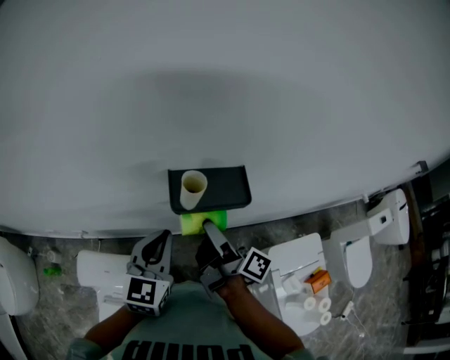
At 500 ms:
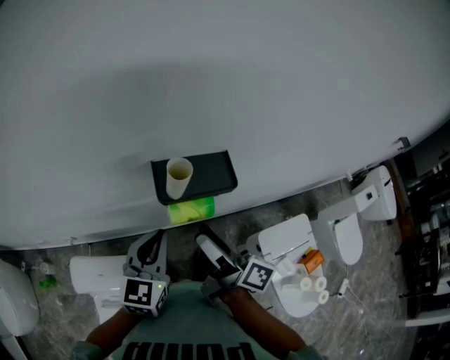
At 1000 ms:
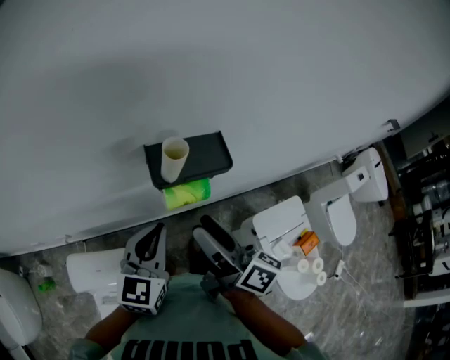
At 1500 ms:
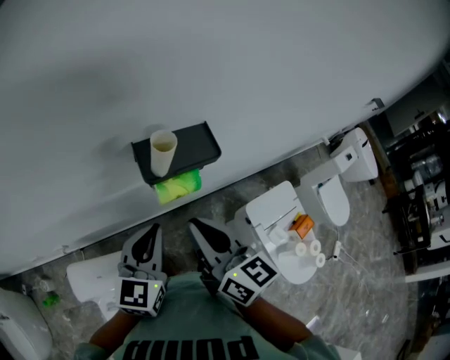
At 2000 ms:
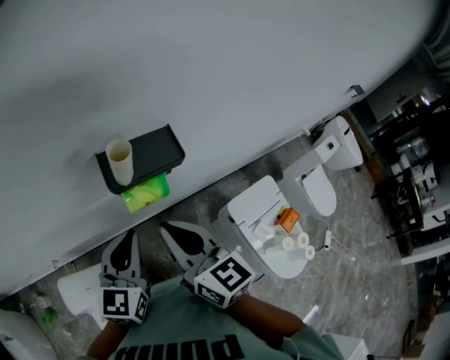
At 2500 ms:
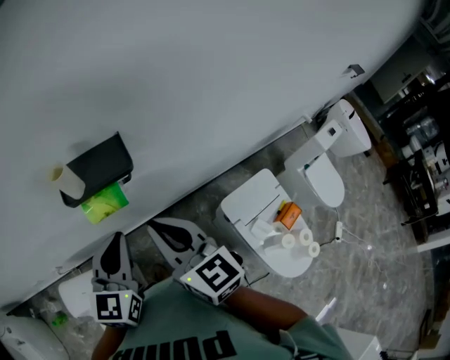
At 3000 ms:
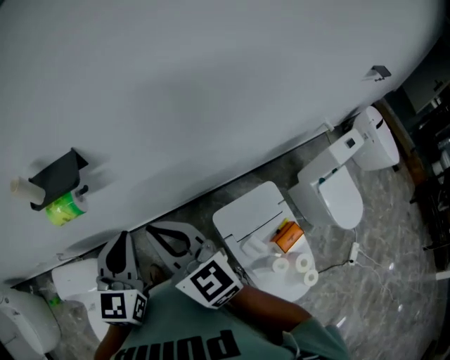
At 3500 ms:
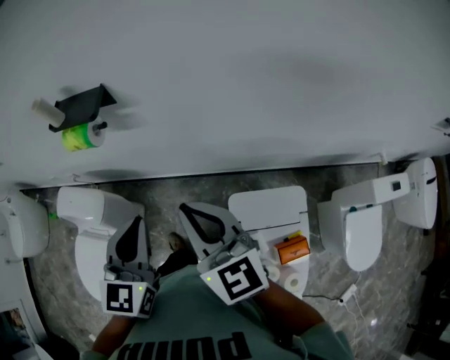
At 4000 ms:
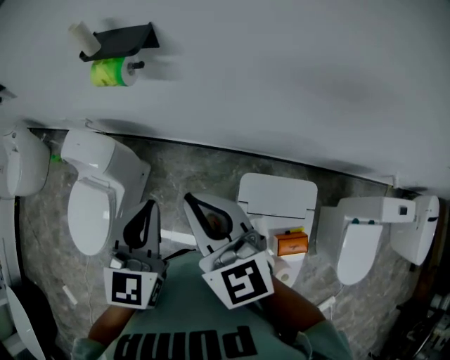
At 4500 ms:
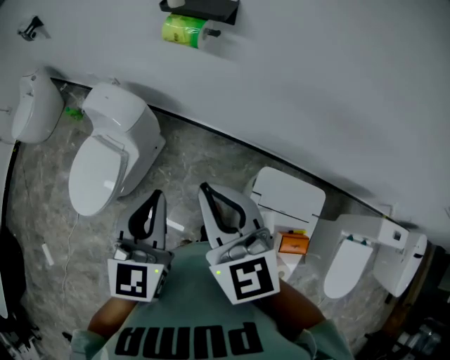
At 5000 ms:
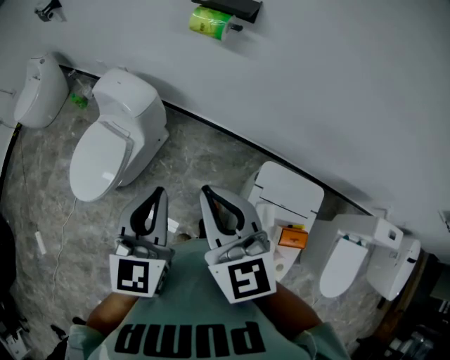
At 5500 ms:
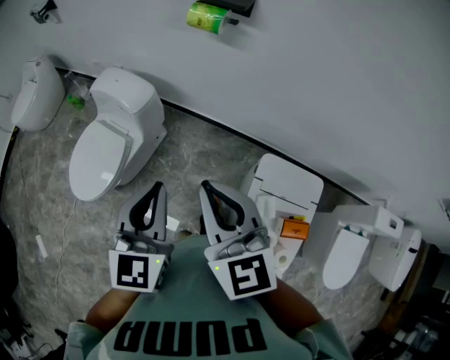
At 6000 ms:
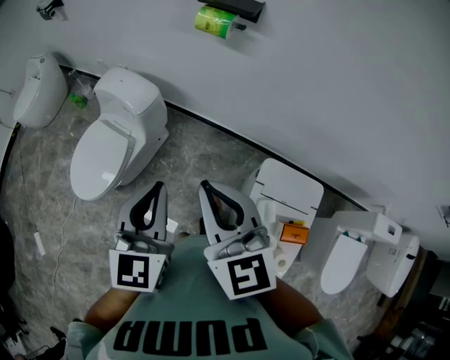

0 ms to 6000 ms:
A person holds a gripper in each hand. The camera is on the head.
0 ms to 2000 ms: The right gripper moves backward, some 10 cm, rotates around the line of its fingers by some 70 degrees, counterclockwise from behind, and closes up.
2000 ms to 4000 ms: The right gripper moves some 35 cm, and changes its angle by roughly 40 degrees. The left gripper changes place by some 35 cm, and turns by roughly 40 degrees.
4000 ms to 6000 ms: The grippers both shift to the left and backward by about 20 cm.

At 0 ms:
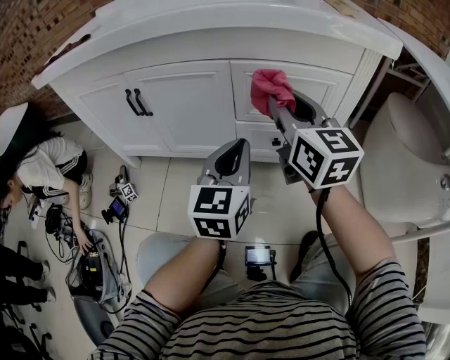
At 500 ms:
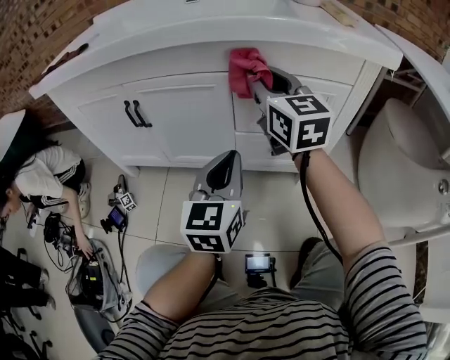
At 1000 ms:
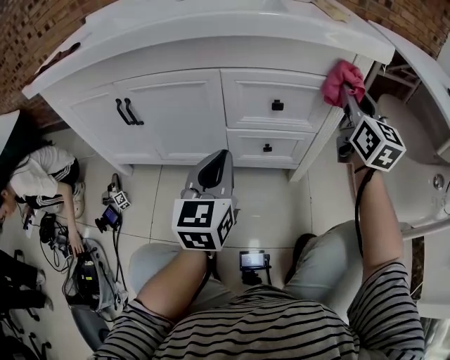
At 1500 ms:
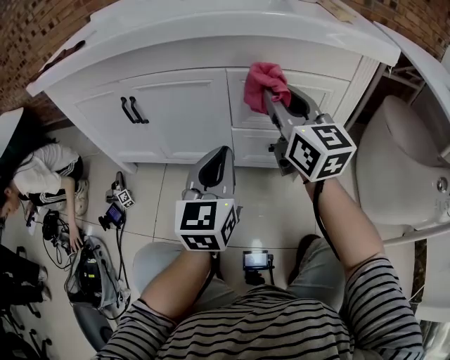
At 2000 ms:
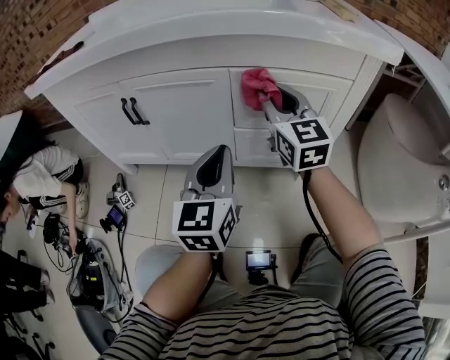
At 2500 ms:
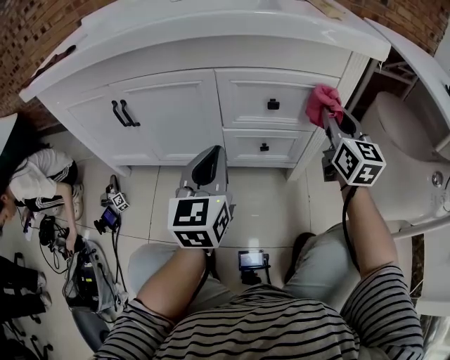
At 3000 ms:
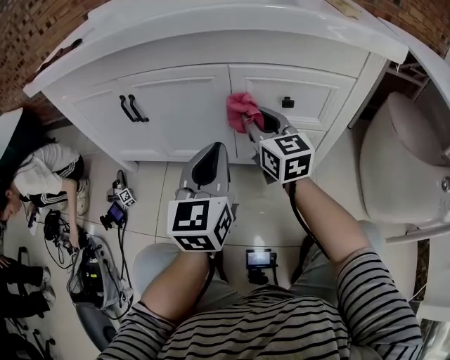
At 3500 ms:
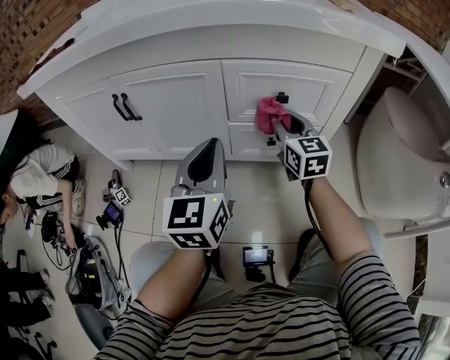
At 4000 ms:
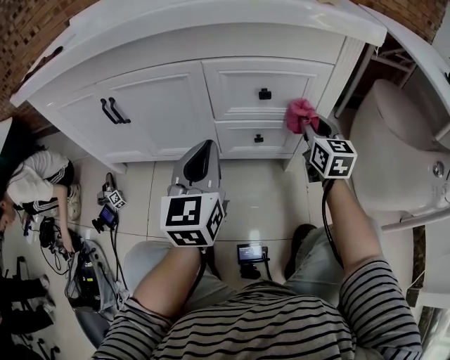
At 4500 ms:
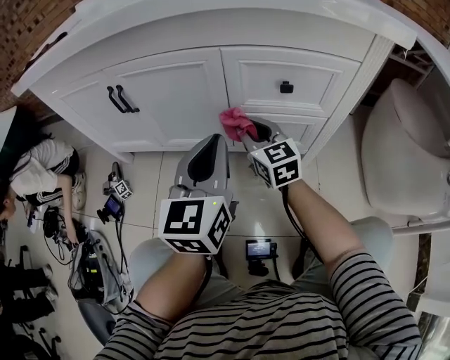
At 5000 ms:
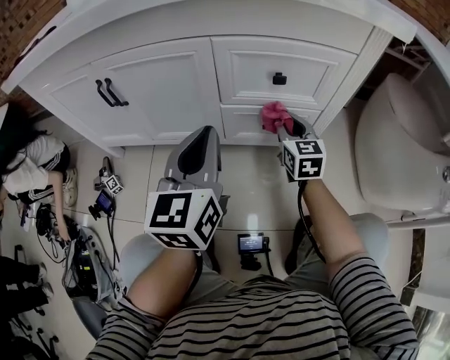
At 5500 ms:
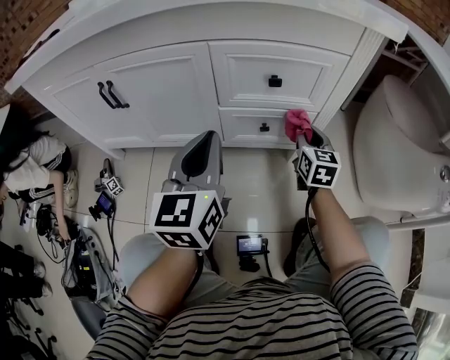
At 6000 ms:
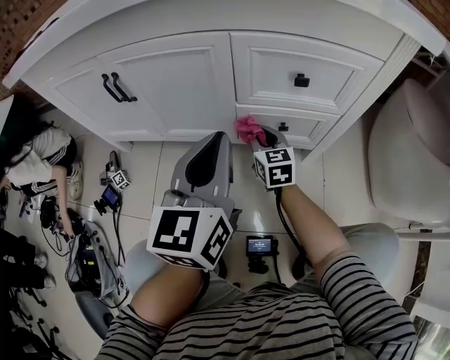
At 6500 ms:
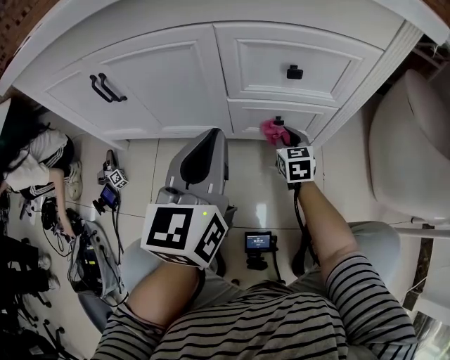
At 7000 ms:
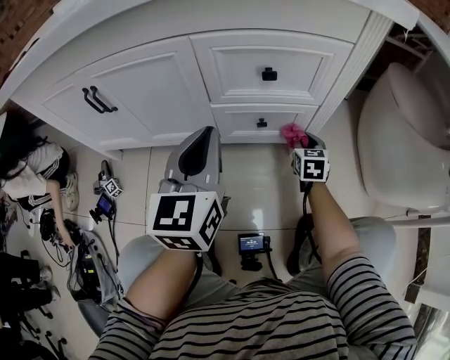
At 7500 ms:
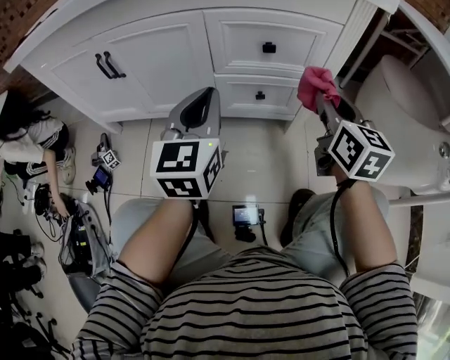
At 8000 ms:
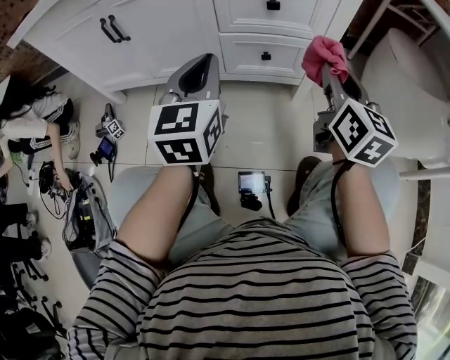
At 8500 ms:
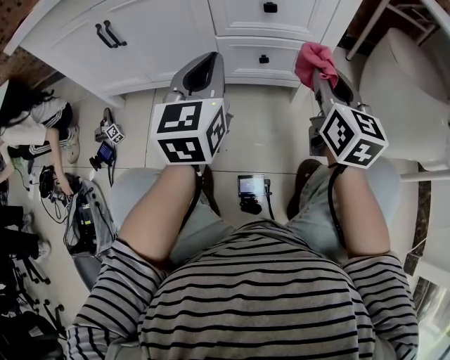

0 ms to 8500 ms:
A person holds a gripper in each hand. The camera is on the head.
0 ms to 2000 ms: The right gripper swings left and right, about 25 cm each way, with 2 reversals.
2000 ms to 4000 ms: The right gripper moves left and right over about 20 cm, changing direction 2 times, and rotates about 20 degrees.
4000 ms to 6500 ms: The right gripper swings left and right, about 25 cm each way, with 3 reversals, and changes its angle by some 20 degrees.
6500 ms to 8500 ms: The right gripper goes roughly 30 cm upward and backward, and rotates roughly 30 degrees.

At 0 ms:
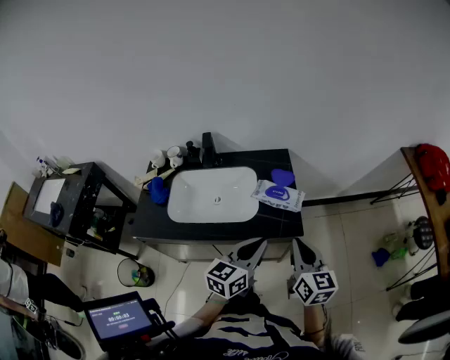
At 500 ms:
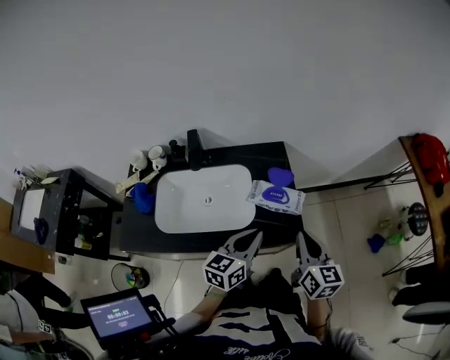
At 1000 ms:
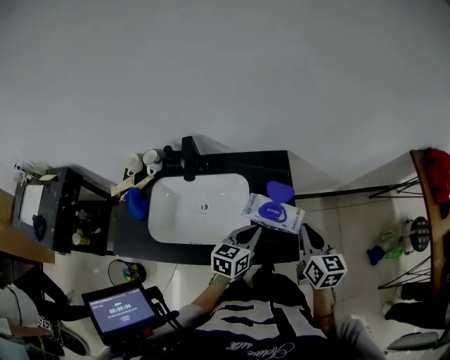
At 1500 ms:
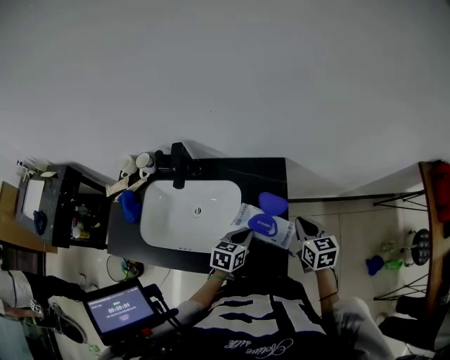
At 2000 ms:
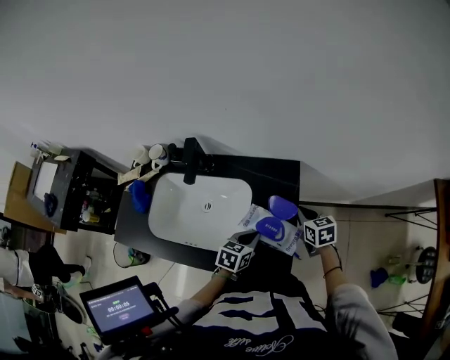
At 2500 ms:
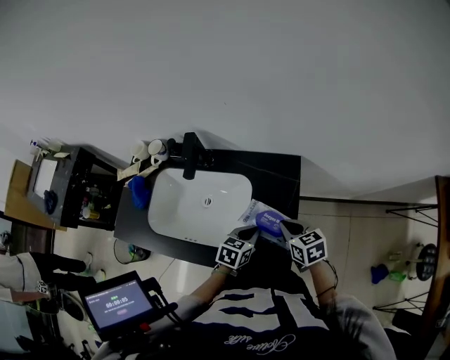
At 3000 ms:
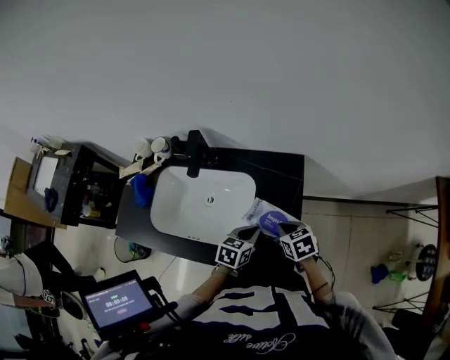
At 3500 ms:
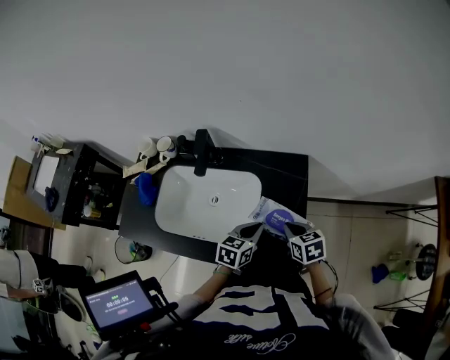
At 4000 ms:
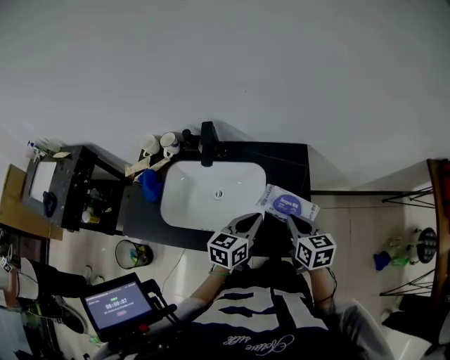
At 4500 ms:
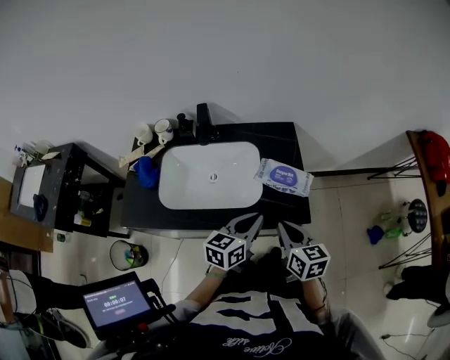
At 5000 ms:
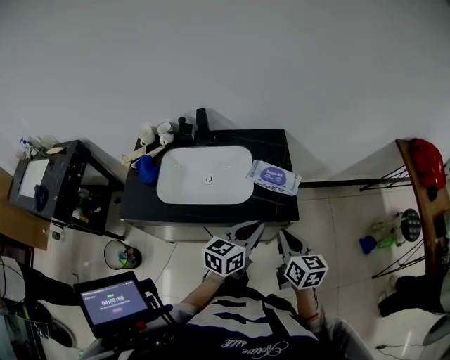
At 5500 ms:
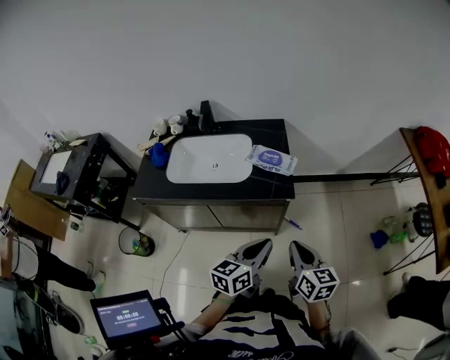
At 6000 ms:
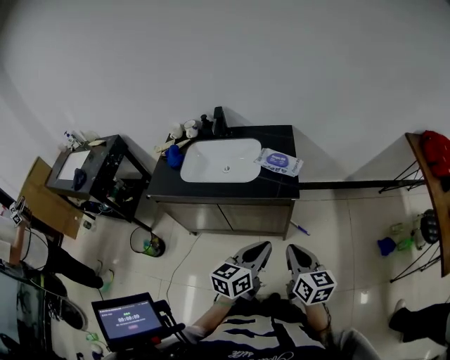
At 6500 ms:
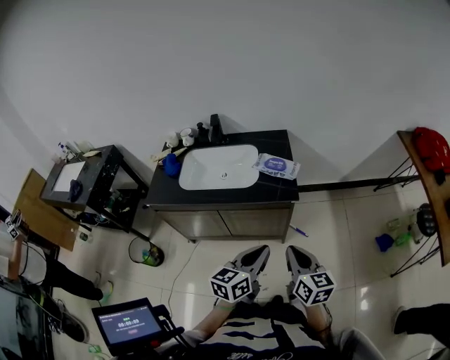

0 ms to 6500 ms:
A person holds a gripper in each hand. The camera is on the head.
0 ms to 2000 ms: Both grippers travel together forward and downward, approximately 35 cm. The left gripper tilts its fingers some 30 degrees downward; the right gripper angles its fingers downward, by approximately 30 degrees.
2000 ms to 4500 ms: The right gripper is displaced backward, to the left and upward by some 35 cm, and changes its angle by about 20 degrees, while the left gripper heads upward, backward and to the left, covering about 20 cm, and changes its angle by about 30 degrees.
4500 ms to 6500 ms: Both grippers move backward and to the right, roughly 25 cm.

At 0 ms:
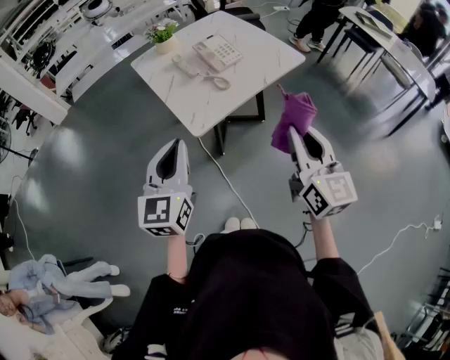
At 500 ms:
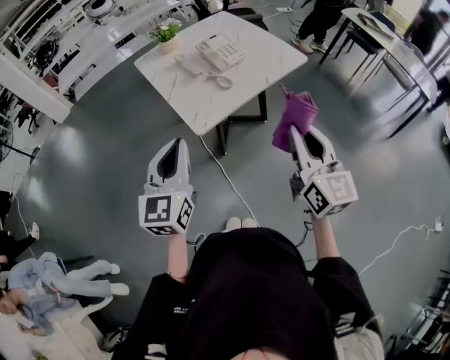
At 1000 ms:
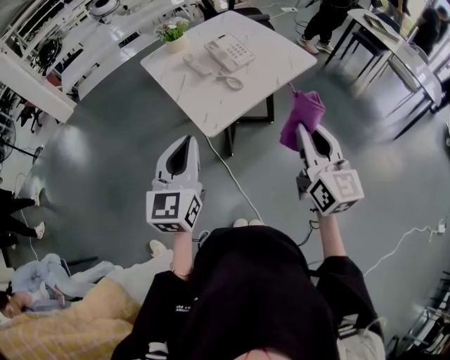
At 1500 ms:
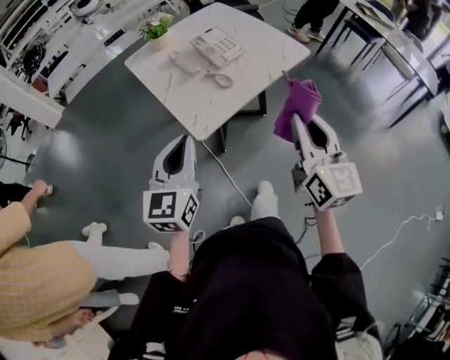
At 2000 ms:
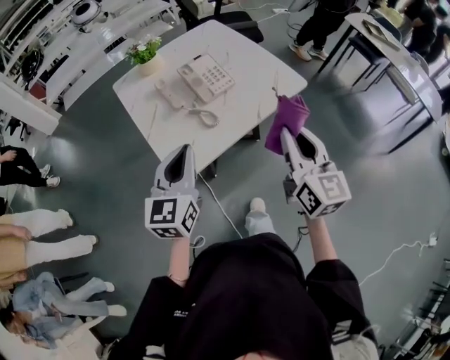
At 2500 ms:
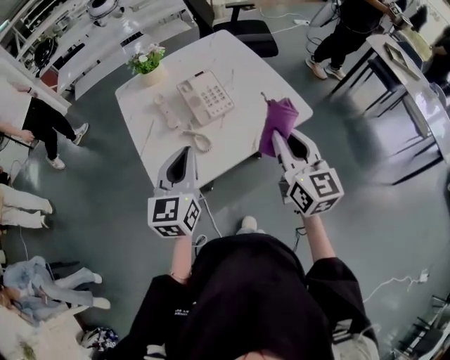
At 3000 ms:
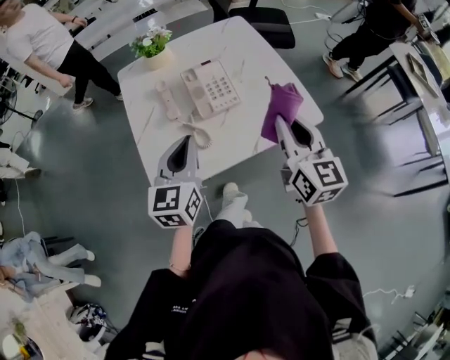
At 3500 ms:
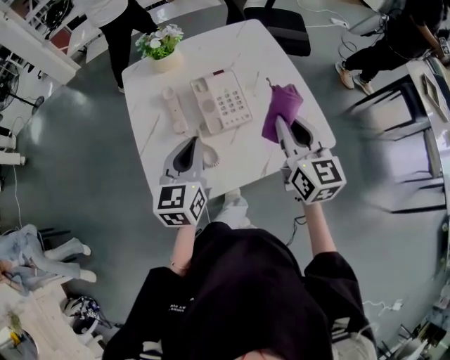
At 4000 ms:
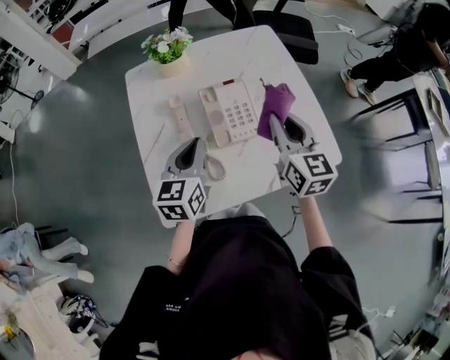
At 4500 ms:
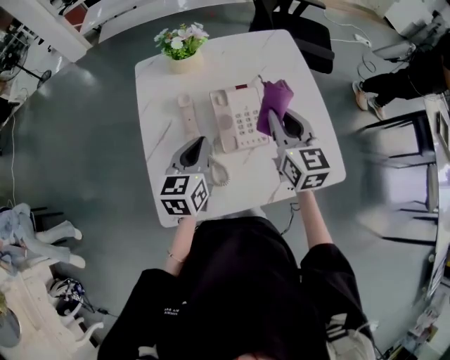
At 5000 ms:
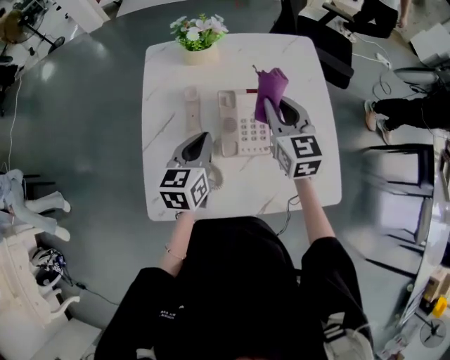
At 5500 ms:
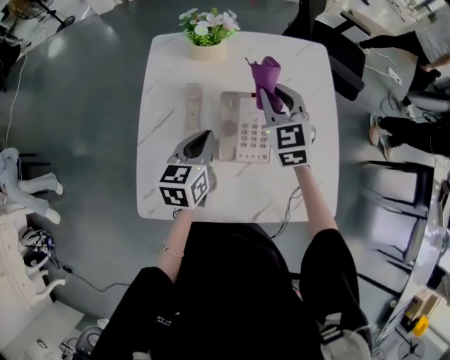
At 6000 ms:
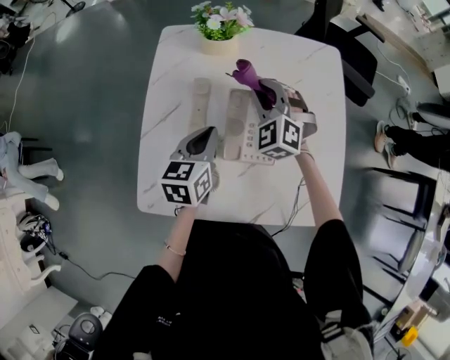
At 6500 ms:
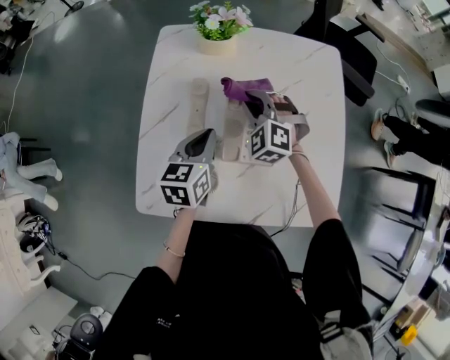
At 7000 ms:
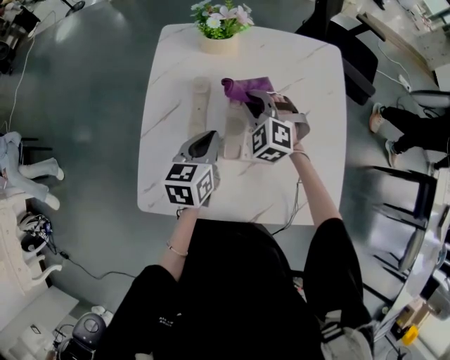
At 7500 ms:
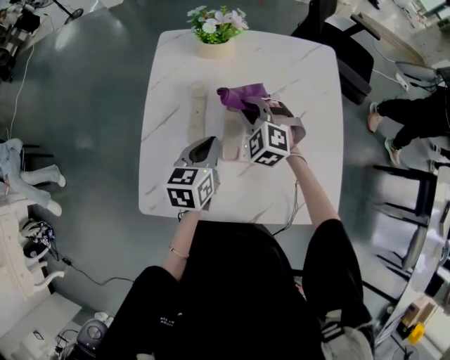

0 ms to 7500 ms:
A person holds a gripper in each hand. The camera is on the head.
0 ms to 2000 ms: The left gripper shifts roughly 20 cm forward and to the right. The right gripper travels forward by about 20 cm.
2000 ms to 4000 ms: Both grippers travel together forward, approximately 30 cm. The left gripper rotates about 20 degrees; the right gripper turns by some 20 degrees.
4000 ms to 5500 ms: The right gripper is displaced forward and to the left by some 20 cm, and changes its angle by approximately 40 degrees, while the left gripper goes roughly 10 cm forward and downward.
5500 ms to 7500 ms: The right gripper shifts approximately 15 cm downward and to the left, and turns by some 40 degrees.
